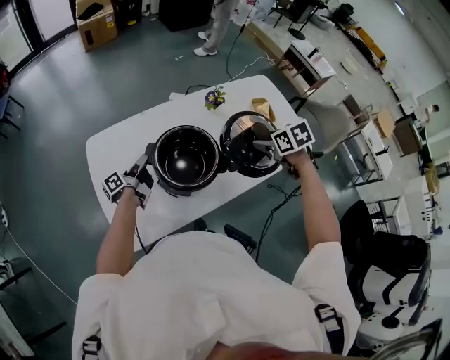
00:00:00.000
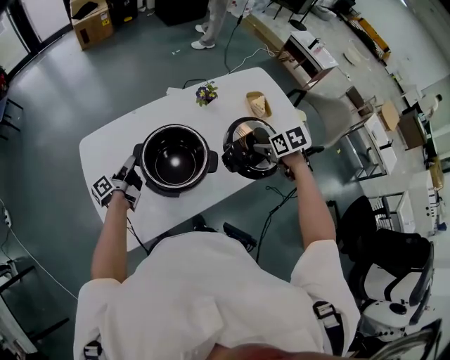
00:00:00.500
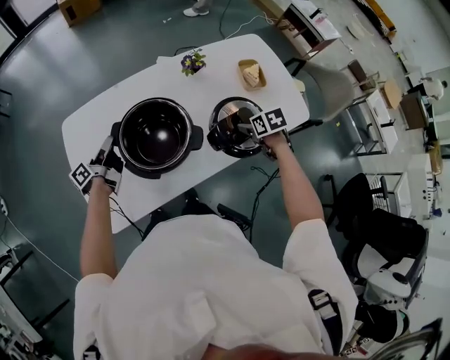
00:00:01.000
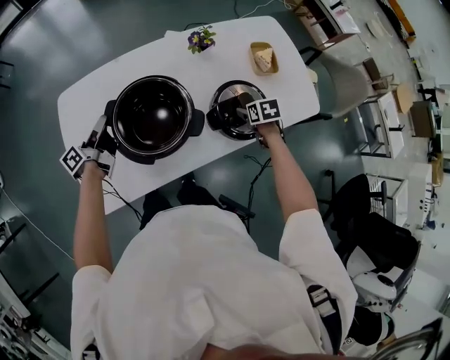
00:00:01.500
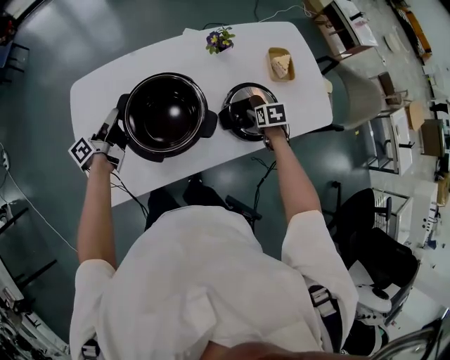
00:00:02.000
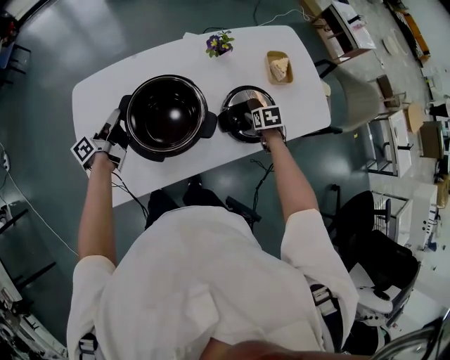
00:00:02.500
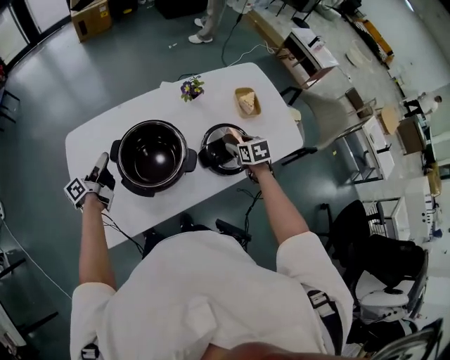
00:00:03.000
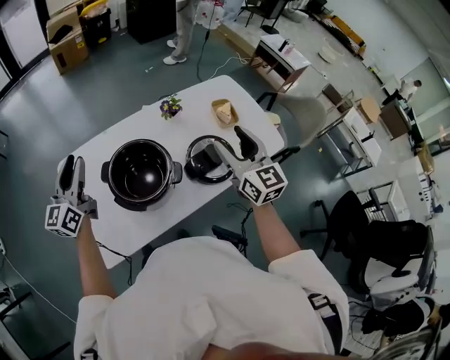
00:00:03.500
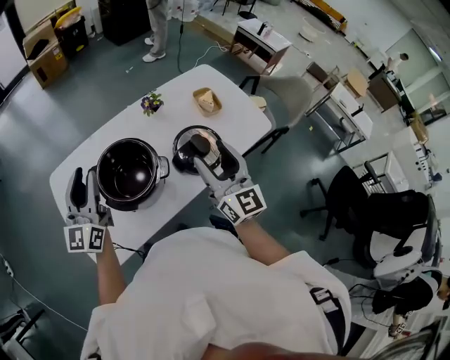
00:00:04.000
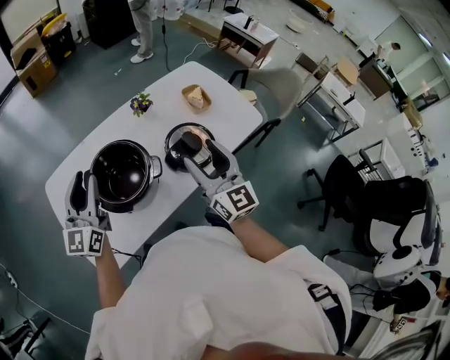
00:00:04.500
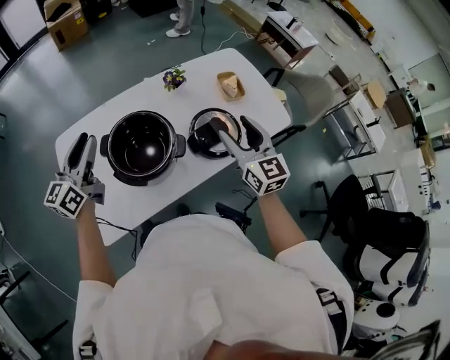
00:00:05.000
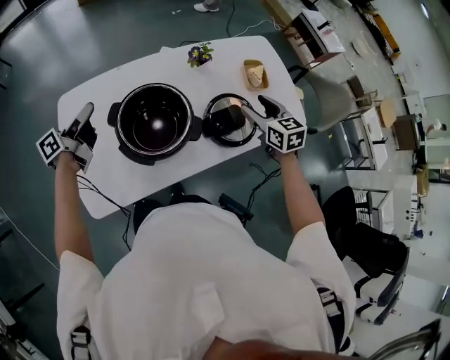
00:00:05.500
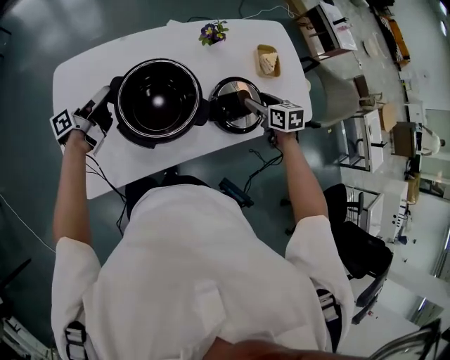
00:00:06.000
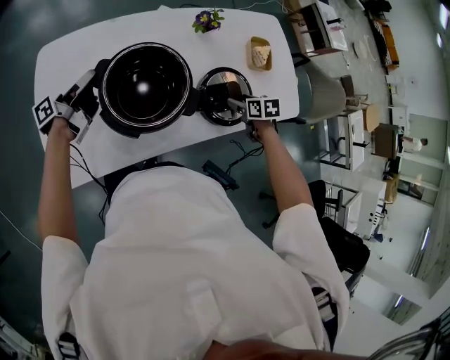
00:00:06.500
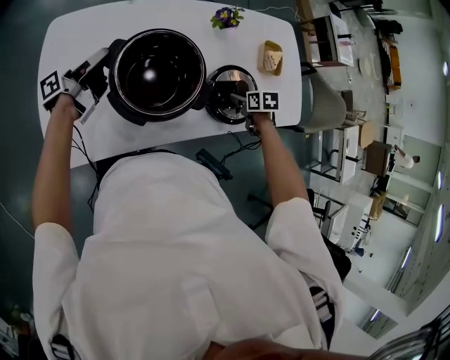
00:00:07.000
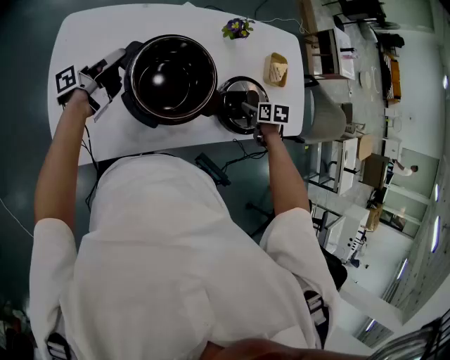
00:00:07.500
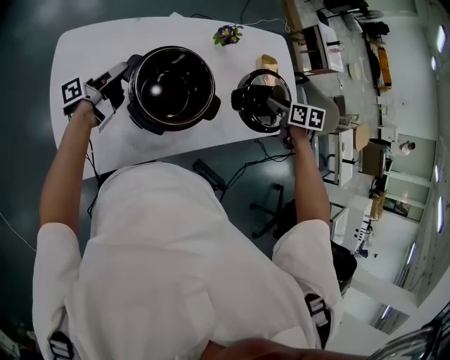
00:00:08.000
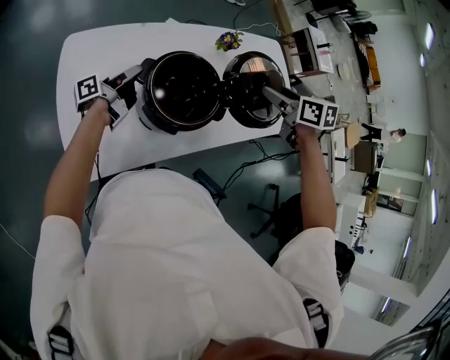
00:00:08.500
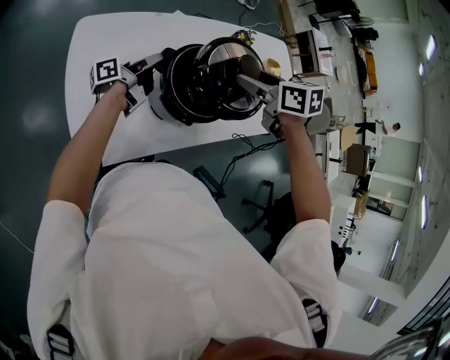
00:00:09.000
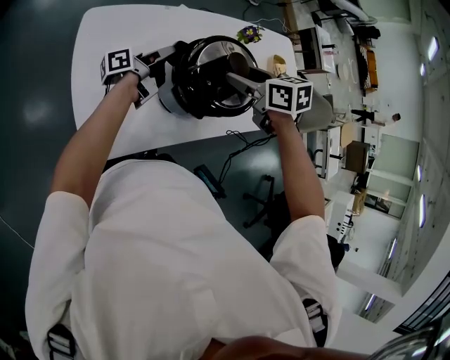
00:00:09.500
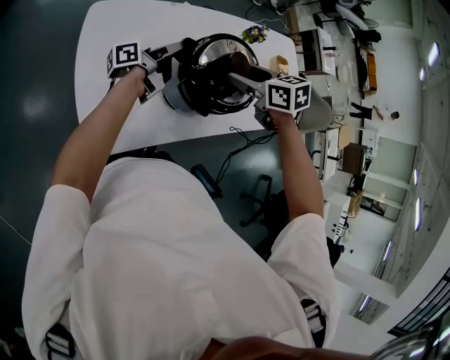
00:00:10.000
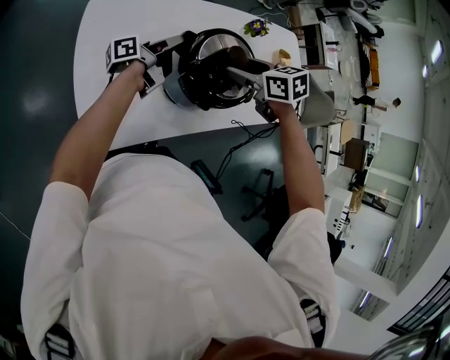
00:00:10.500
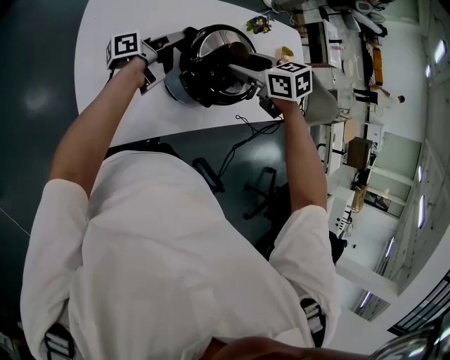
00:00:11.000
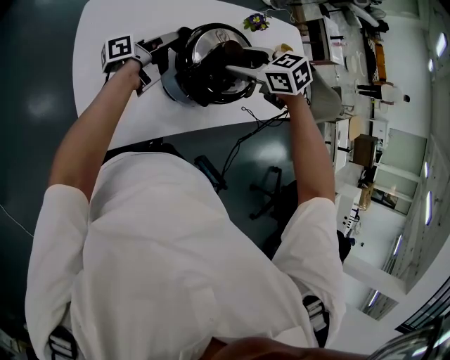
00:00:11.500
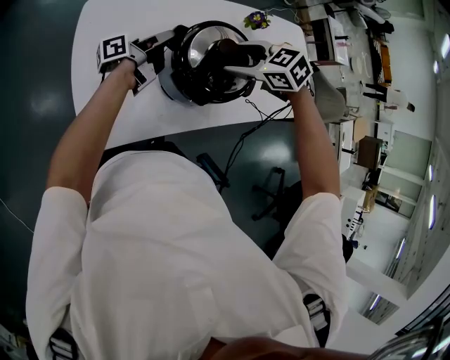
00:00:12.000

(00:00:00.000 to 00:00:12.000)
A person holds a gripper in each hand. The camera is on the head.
00:00:00.000 - 00:00:02.000: The right gripper moves downward, approximately 25 cm.
00:00:02.000 - 00:00:04.000: The right gripper is displaced upward and backward by about 40 cm, and tips its fingers upward by approximately 80 degrees. The left gripper heads upward, covering approximately 25 cm, and rotates around the line of its fingers by about 70 degrees, clockwise from behind.
00:00:04.000 - 00:00:06.000: The left gripper goes about 25 cm downward, and rotates around the line of its fingers by some 80 degrees, counterclockwise from behind. Meanwhile the right gripper goes roughly 30 cm downward and forward, and tips its fingers downward by approximately 60 degrees.
00:00:06.000 - 00:00:08.000: The right gripper goes downward and returns, approximately 10 cm each way.
00:00:08.000 - 00:00:10.000: The right gripper is displaced to the left by approximately 35 cm, and turns by about 30 degrees.
00:00:10.000 - 00:00:12.000: The right gripper rotates about 30 degrees.

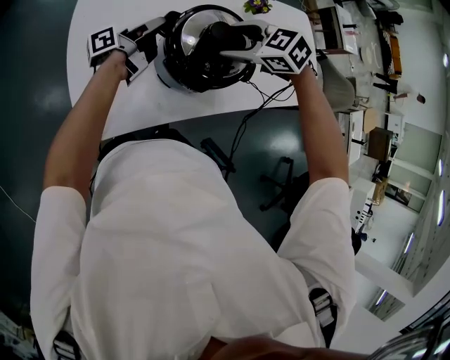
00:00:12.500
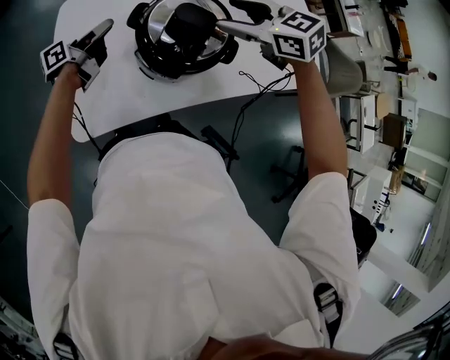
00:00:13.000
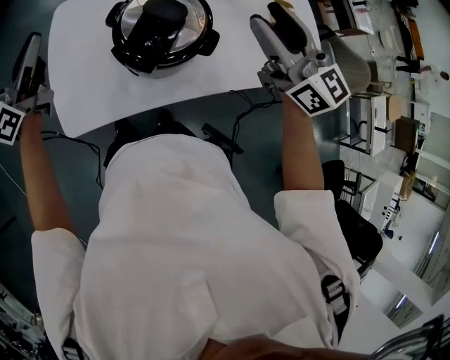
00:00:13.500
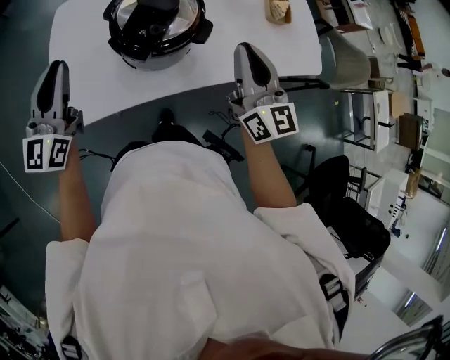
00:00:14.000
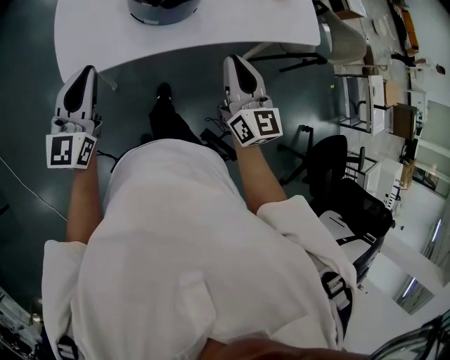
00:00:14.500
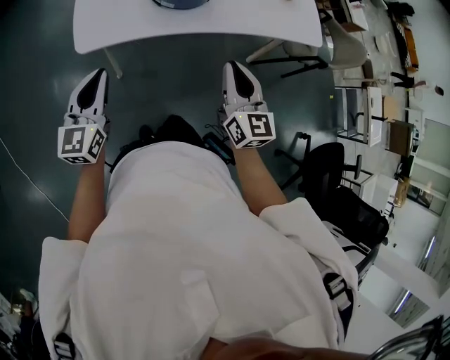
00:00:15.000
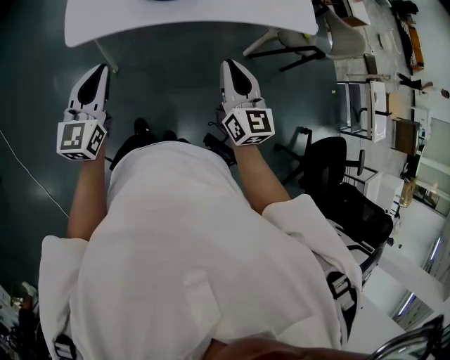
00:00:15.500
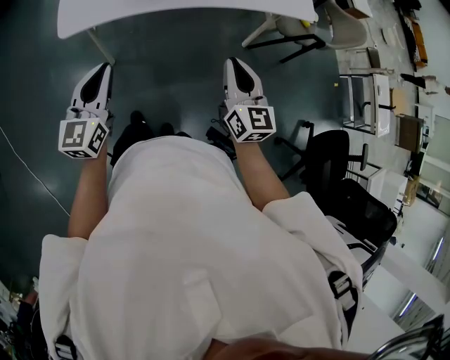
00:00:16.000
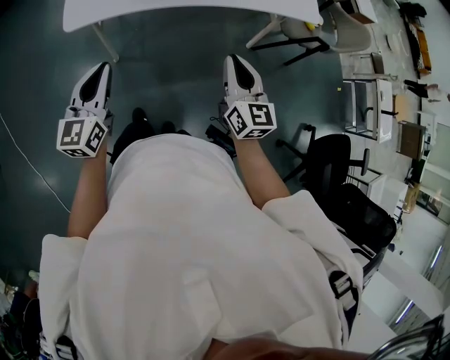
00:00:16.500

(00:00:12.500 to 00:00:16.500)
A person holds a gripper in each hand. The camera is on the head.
00:00:12.500 - 00:00:14.500: The grippers both shift backward by some 35 cm. The left gripper twists roughly 90 degrees clockwise, seen from behind. The right gripper tips its fingers upward by about 50 degrees, and closes its fingers.
00:00:14.500 - 00:00:16.500: The grippers both shift backward and to the right by some 20 cm.

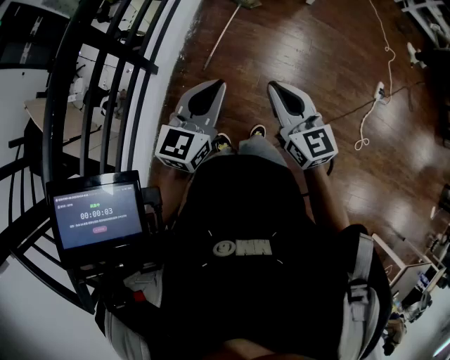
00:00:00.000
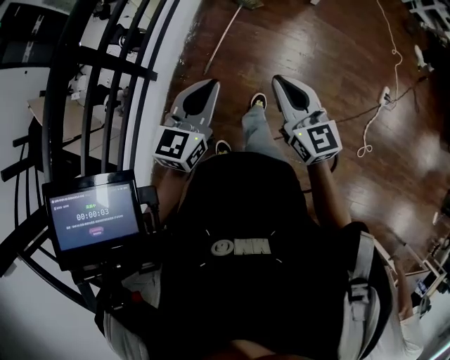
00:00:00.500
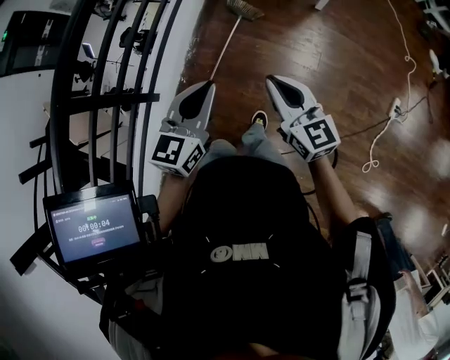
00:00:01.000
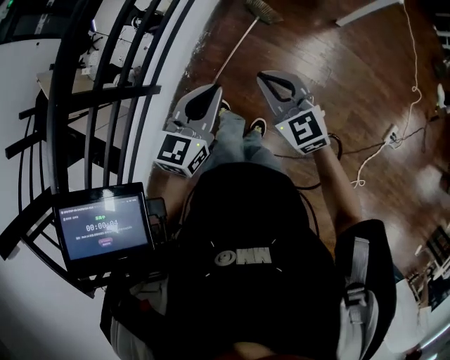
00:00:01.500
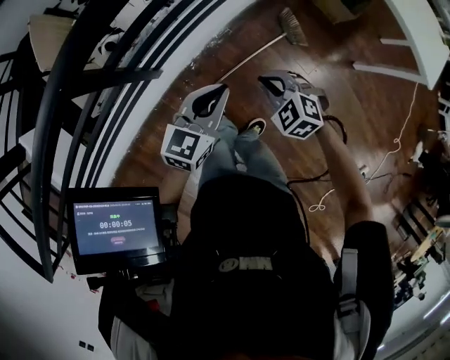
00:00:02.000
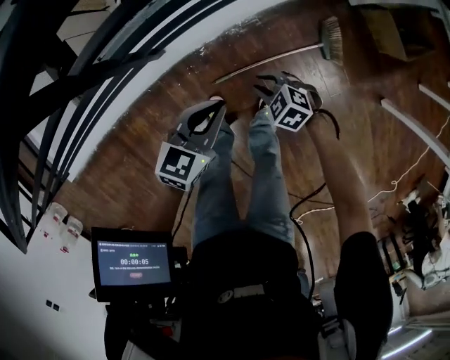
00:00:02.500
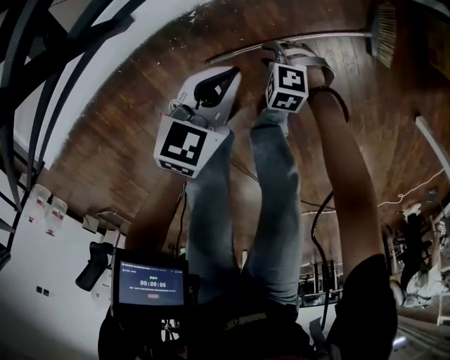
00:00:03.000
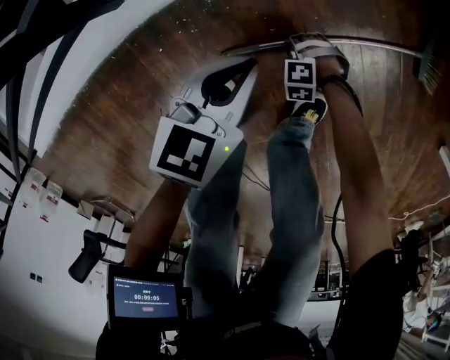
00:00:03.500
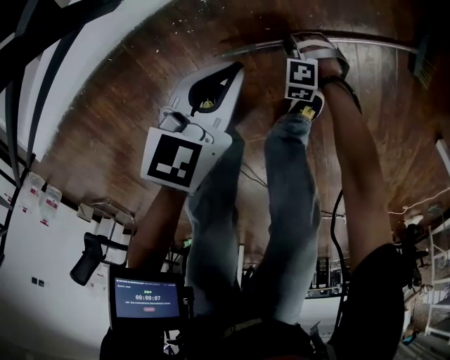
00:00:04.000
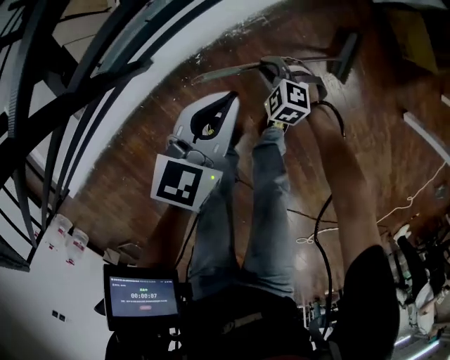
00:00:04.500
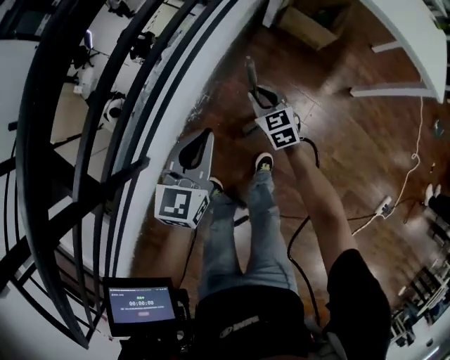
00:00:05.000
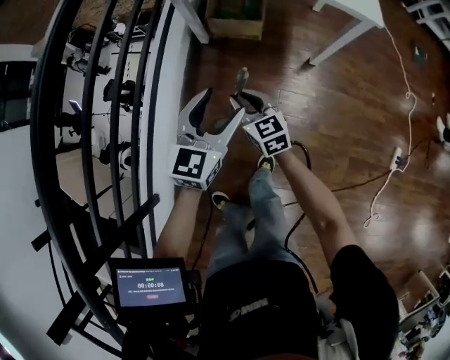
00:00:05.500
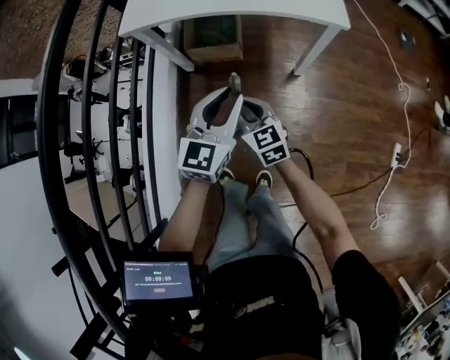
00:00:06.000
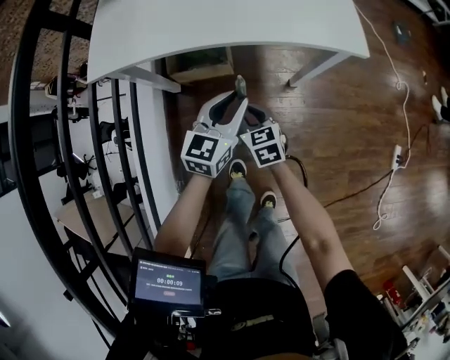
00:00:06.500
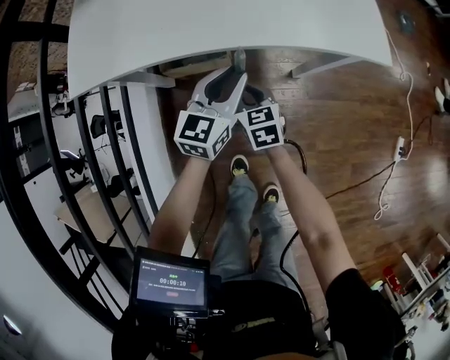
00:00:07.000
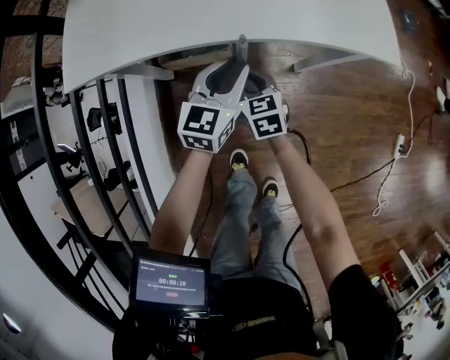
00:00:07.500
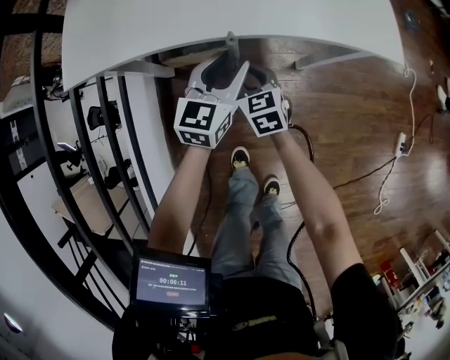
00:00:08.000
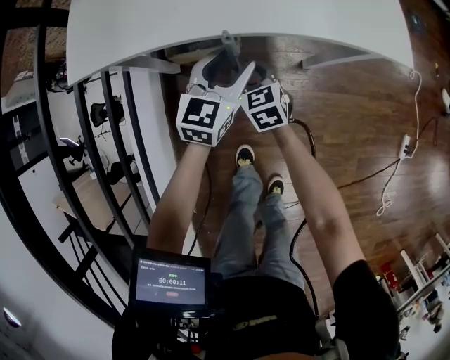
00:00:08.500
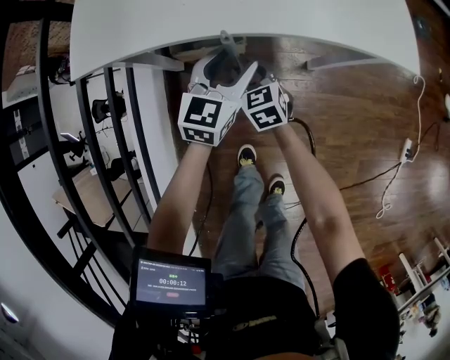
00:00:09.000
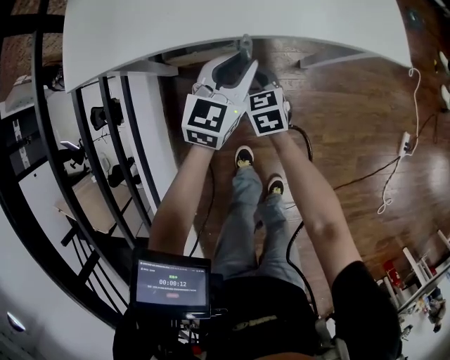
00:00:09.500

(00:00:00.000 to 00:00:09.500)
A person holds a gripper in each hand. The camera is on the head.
00:00:00.000 - 00:00:02.000: The right gripper moves downward and forward, approximately 10 cm, and twists roughly 50 degrees counterclockwise, seen from behind.
00:00:02.000 - 00:00:04.000: Both grippers travel together downward, approximately 70 cm. The left gripper swivels approximately 30 degrees. Meanwhile the right gripper rotates around the line of its fingers by about 40 degrees, counterclockwise from behind.
00:00:04.000 - 00:00:05.500: Both grippers move upward, roughly 60 cm. The left gripper changes its angle by approximately 60 degrees, and opens its fingers, while the right gripper points its fingers roughly 60 degrees further upward.
00:00:05.500 - 00:00:07.500: Both grippers move forward, roughly 35 cm. The left gripper closes. The right gripper changes its angle by approximately 30 degrees.
00:00:07.500 - 00:00:09.500: The left gripper opens, then closes once more.

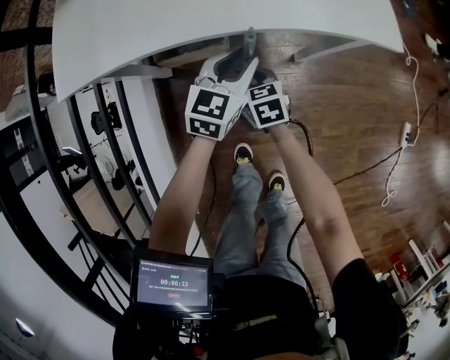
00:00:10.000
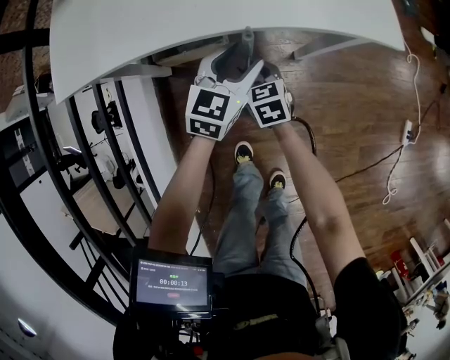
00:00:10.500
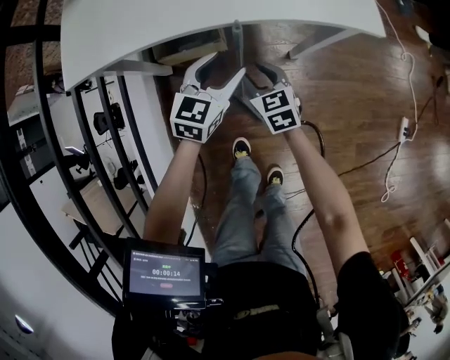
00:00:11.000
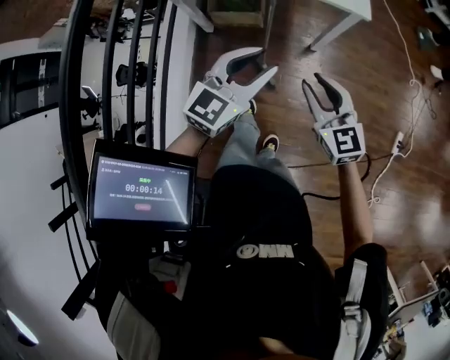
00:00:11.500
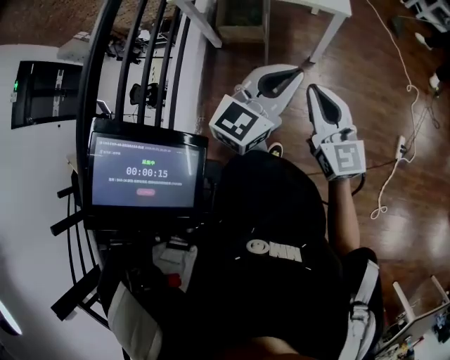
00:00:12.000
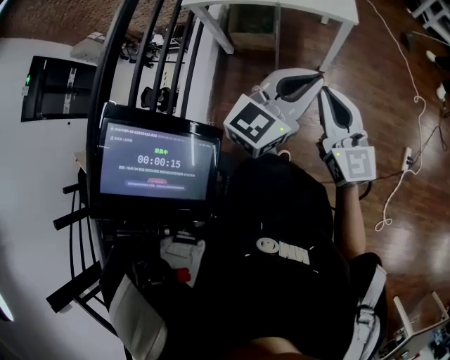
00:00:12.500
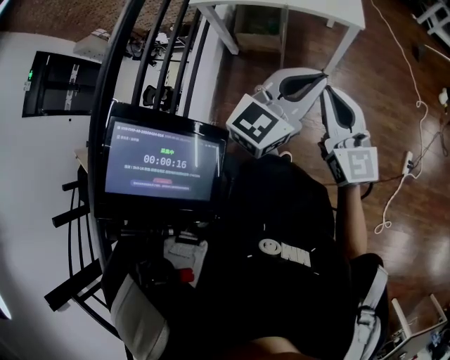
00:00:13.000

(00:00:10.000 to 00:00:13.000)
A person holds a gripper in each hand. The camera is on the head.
00:00:10.000 - 00:00:11.500: The left gripper opens and closes again; the right gripper heads to the right and upward, covering some 10 cm, and rotates approximately 40 degrees.
00:00:11.500 - 00:00:13.000: The left gripper goes roughly 10 cm upward and to the right, and closes, while the right gripper goes roughly 10 cm upward, swivels approximately 20 degrees, and closes up.
